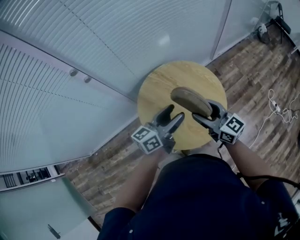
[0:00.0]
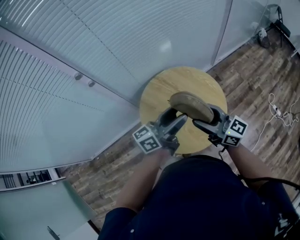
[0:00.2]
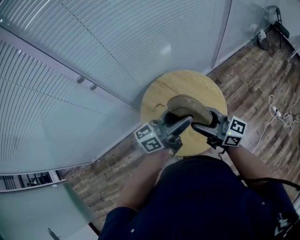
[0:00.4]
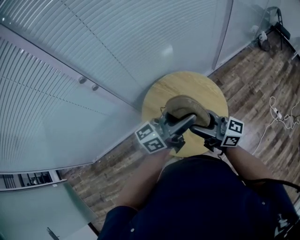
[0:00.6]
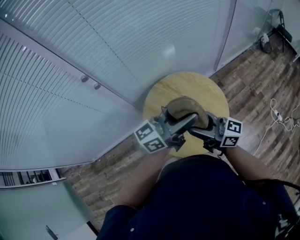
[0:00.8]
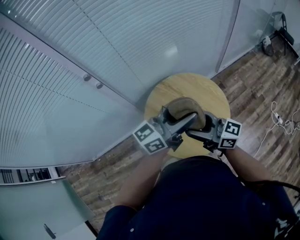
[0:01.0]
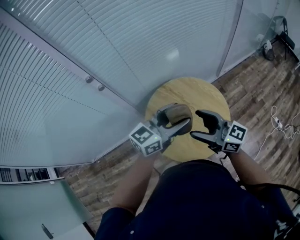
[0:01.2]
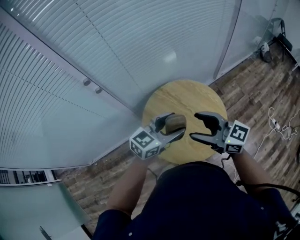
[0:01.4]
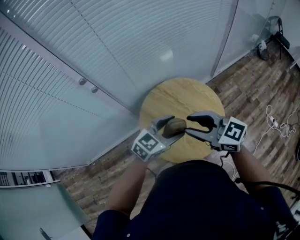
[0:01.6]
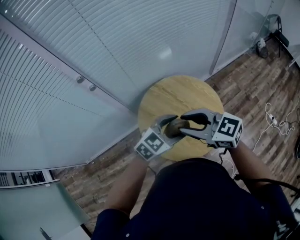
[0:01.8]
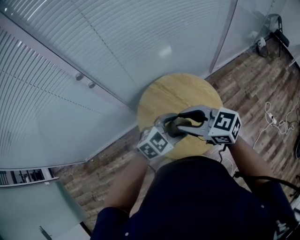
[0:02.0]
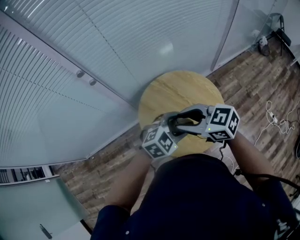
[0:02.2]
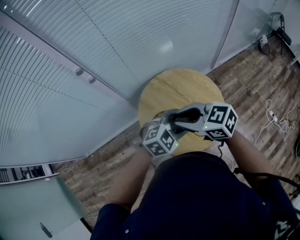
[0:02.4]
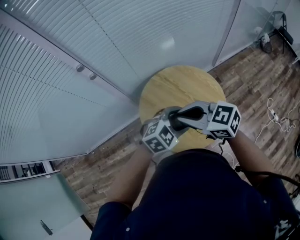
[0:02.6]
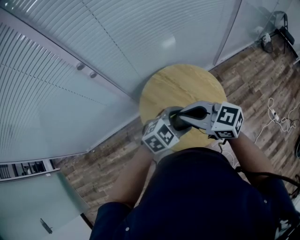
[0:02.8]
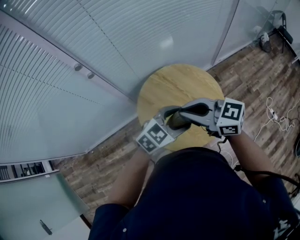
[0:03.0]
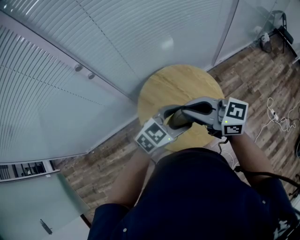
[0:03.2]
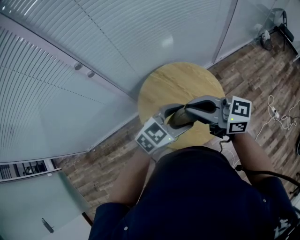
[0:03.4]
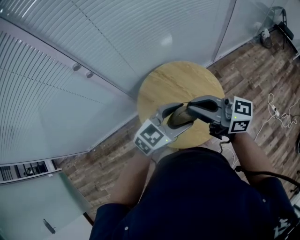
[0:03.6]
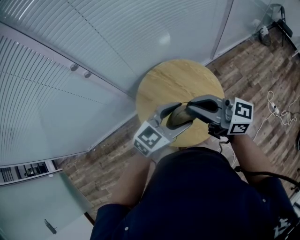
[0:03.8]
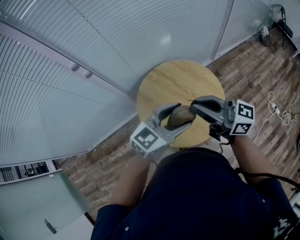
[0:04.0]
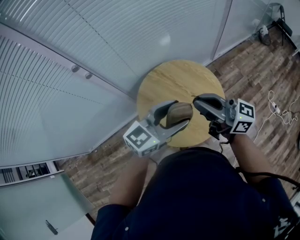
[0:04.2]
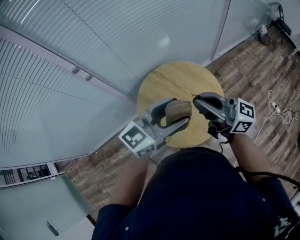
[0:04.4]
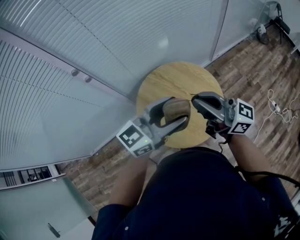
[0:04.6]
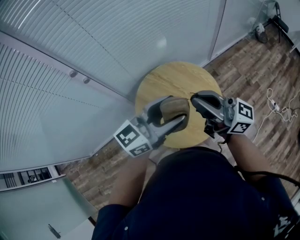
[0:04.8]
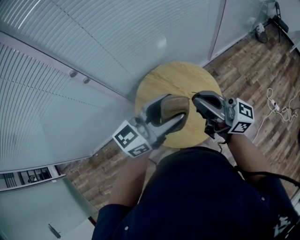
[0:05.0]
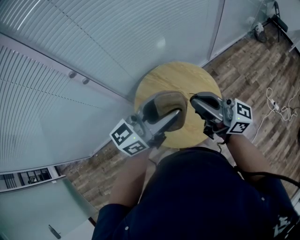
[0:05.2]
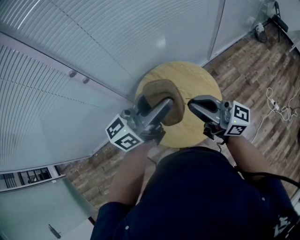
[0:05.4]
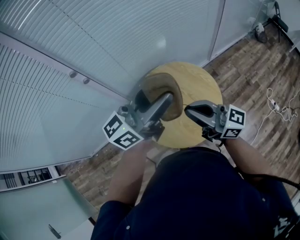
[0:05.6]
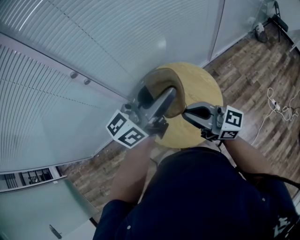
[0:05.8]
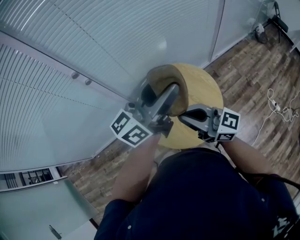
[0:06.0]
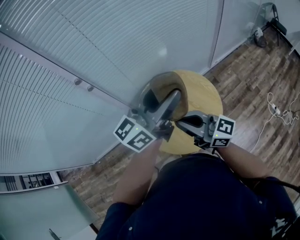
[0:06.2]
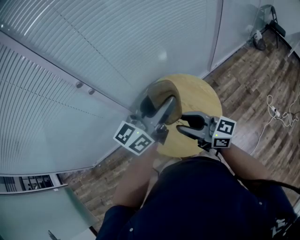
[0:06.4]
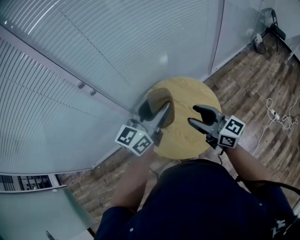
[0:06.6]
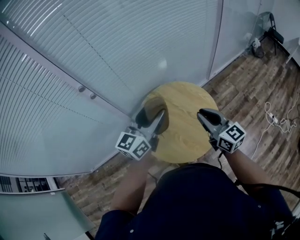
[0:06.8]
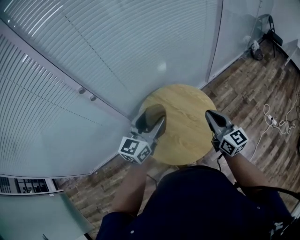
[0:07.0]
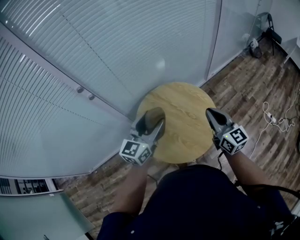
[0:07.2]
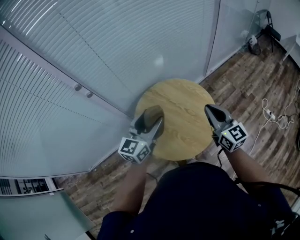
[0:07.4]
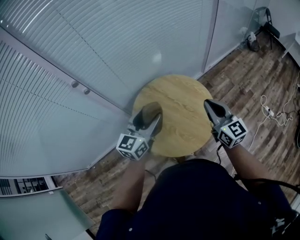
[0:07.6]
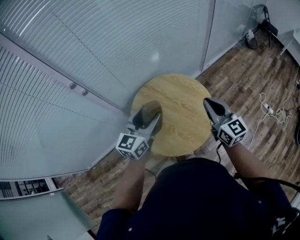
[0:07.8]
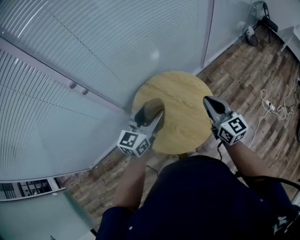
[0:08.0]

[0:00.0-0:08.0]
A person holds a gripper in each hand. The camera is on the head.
0:00.0 to 0:01.6: The right gripper shifts roughly 10 cm upward, and changes its angle by some 20 degrees. Meanwhile the left gripper goes upward and returns, roughly 15 cm each way, and swivels some 50 degrees.
0:01.6 to 0:03.2: The right gripper closes.
0:03.2 to 0:04.8: The left gripper shifts approximately 10 cm upward, and angles its fingers upward, by some 30 degrees. Meanwhile the right gripper shifts by approximately 10 cm, and changes its angle by about 30 degrees.
0:04.8 to 0:06.4: The right gripper heads downward, covering approximately 10 cm. The left gripper is displaced forward and upward by roughly 10 cm.
0:06.4 to 0:08.0: The left gripper shifts about 15 cm downward, and turns by about 20 degrees. Meanwhile the right gripper moves to the right and forward, some 15 cm, and swivels roughly 40 degrees.

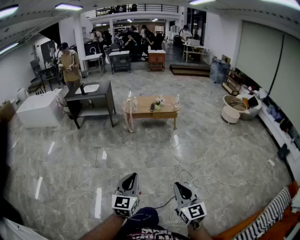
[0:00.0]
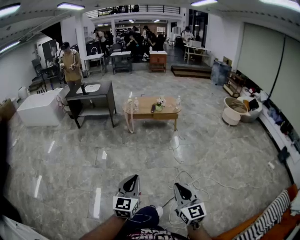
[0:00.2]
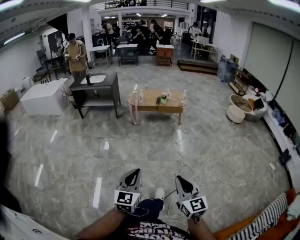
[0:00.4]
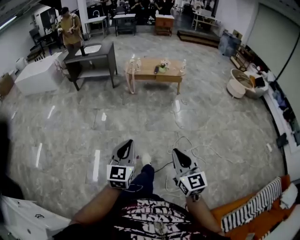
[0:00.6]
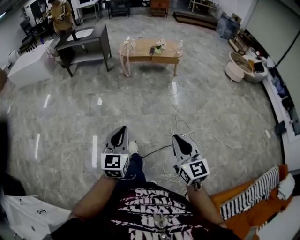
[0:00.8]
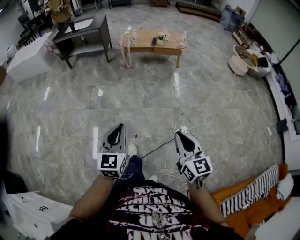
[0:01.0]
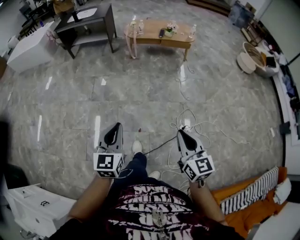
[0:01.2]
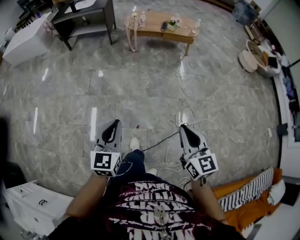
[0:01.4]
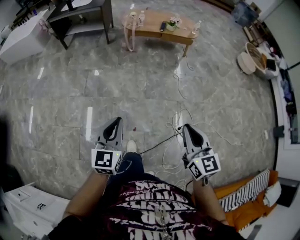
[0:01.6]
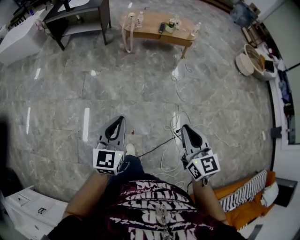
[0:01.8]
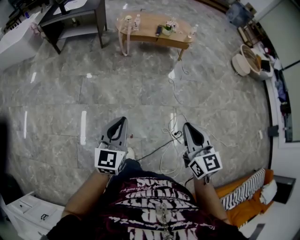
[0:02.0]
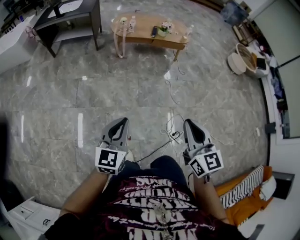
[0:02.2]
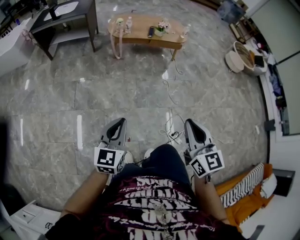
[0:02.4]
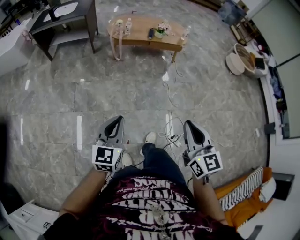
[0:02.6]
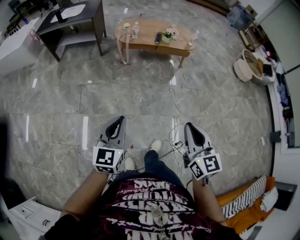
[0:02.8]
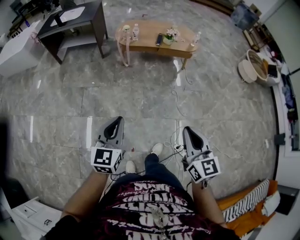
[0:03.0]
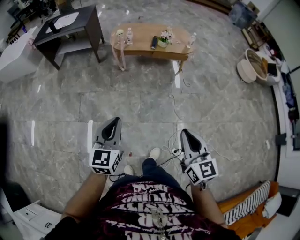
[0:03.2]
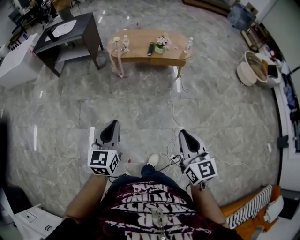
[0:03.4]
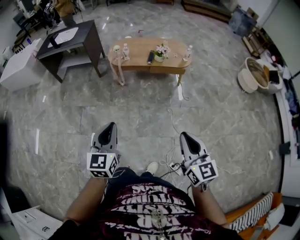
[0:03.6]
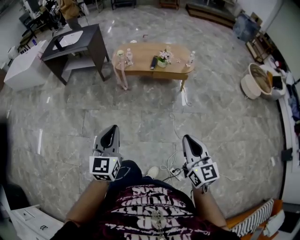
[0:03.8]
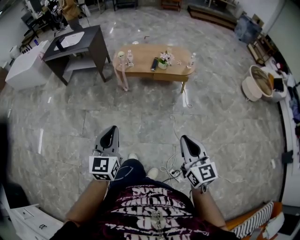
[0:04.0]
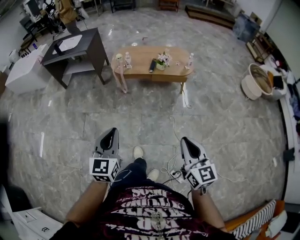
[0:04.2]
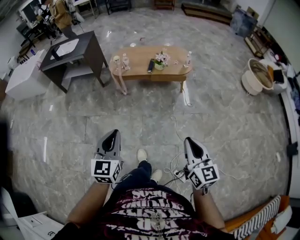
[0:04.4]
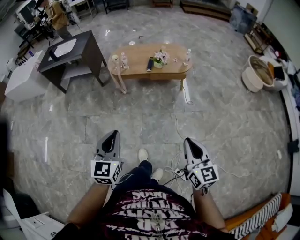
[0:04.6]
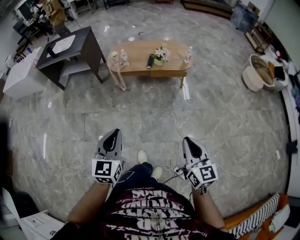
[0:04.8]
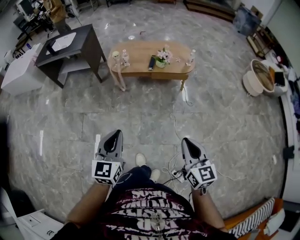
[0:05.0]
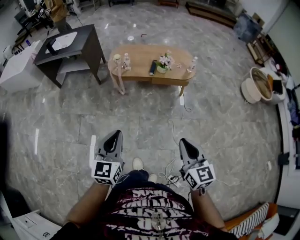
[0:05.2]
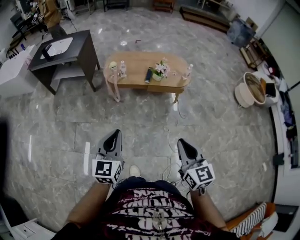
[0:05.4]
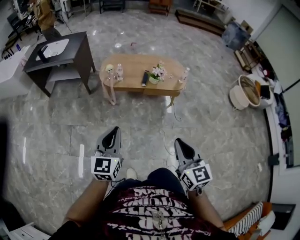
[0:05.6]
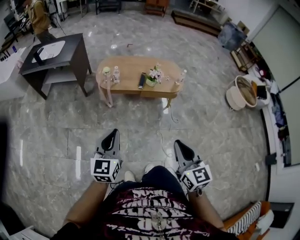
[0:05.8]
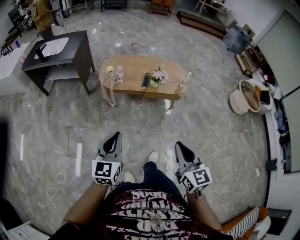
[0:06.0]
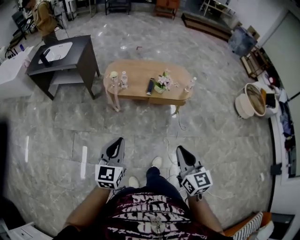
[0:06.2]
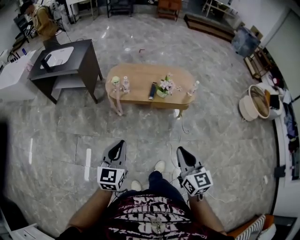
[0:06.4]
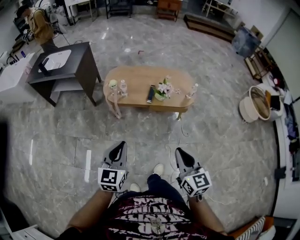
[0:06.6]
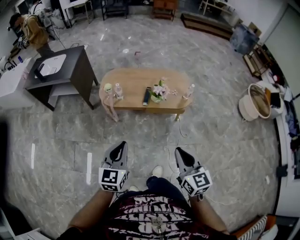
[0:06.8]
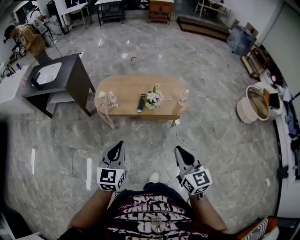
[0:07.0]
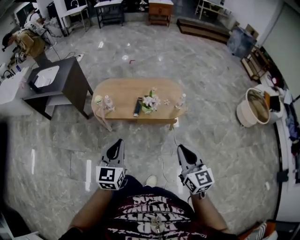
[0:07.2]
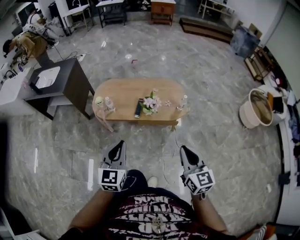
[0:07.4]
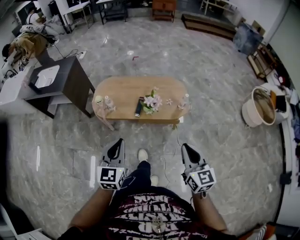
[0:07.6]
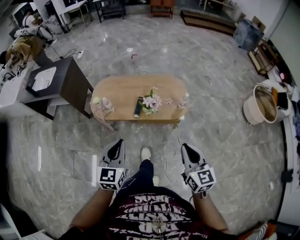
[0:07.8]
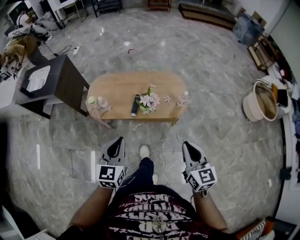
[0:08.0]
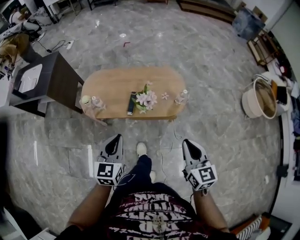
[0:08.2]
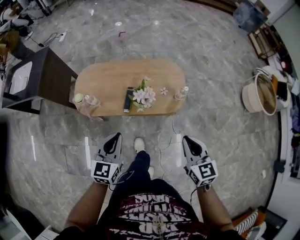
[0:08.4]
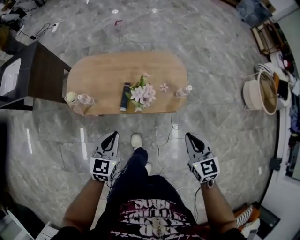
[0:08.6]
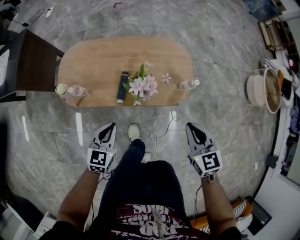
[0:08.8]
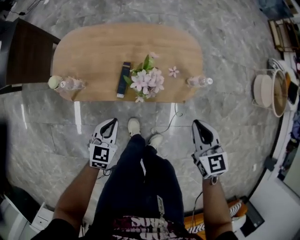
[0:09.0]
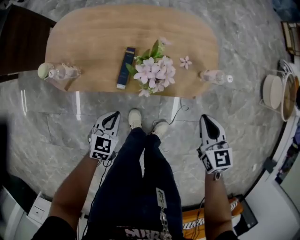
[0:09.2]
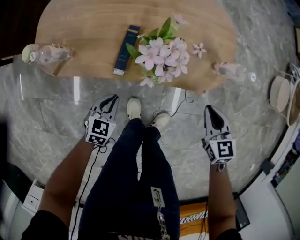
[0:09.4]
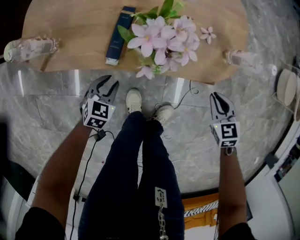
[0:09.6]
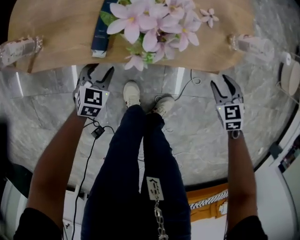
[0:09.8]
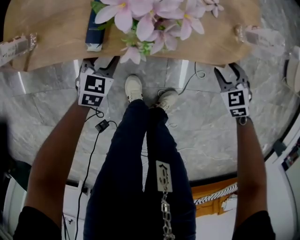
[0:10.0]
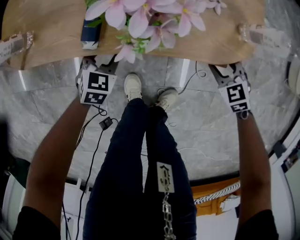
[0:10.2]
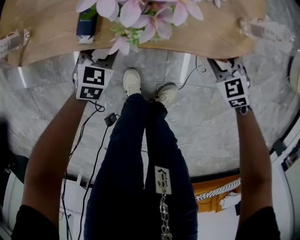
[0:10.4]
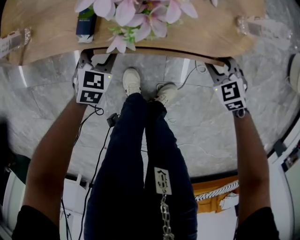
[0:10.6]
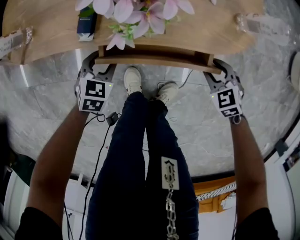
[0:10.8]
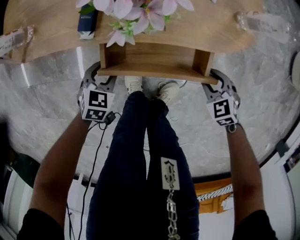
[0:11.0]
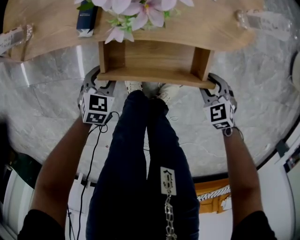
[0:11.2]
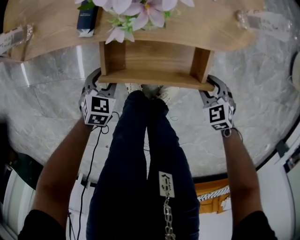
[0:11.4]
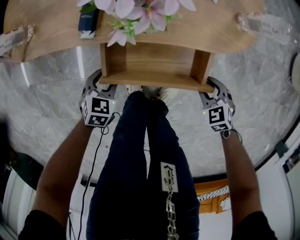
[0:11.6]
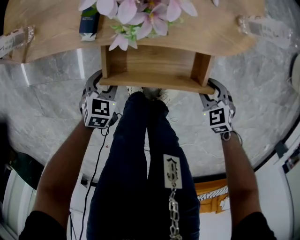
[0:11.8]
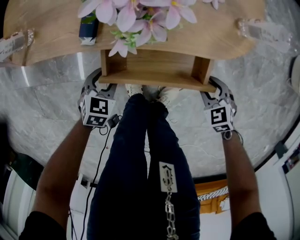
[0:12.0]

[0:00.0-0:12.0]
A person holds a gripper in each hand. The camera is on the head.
0:00.0 to 0:01.6: The left gripper goes approximately 25 cm forward, downward and to the left, while the right gripper goes approximately 25 cm forward.
0:01.6 to 0:03.0: Both grippers travel together forward, some 20 cm.
0:03.0 to 0:04.4: Both grippers move to the right and forward, approximately 20 cm.
0:04.4 to 0:06.0: The right gripper is displaced forward and to the left by roughly 20 cm. The left gripper is displaced forward by some 20 cm.
0:06.0 to 0:07.6: The two grippers go approximately 30 cm forward and to the right.
0:07.6 to 0:09.0: The left gripper travels downward and forward by about 40 cm, and turns by some 30 degrees; the right gripper goes some 40 cm forward and downward, and swivels approximately 20 degrees.
0:09.0 to 0:10.4: The two grippers go about 40 cm downward. The right gripper changes its angle by some 40 degrees, and opens. Meanwhile the left gripper opens up.
0:10.4 to 0:12.0: The grippers both shift backward by about 10 cm.

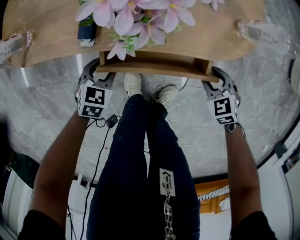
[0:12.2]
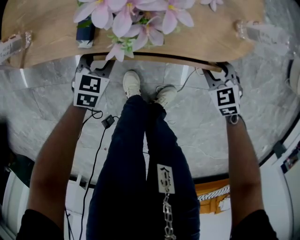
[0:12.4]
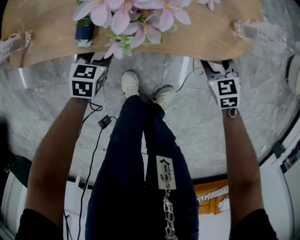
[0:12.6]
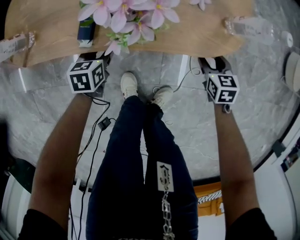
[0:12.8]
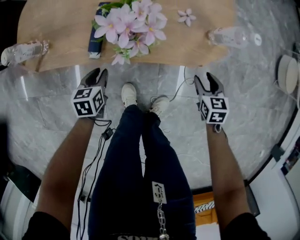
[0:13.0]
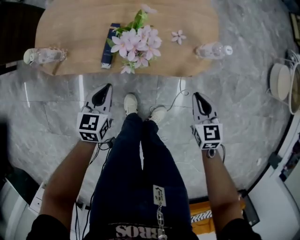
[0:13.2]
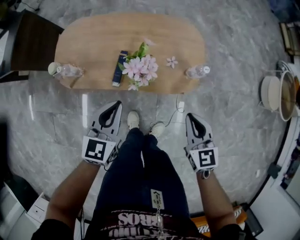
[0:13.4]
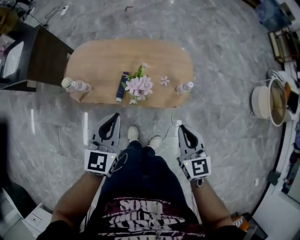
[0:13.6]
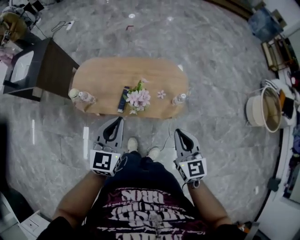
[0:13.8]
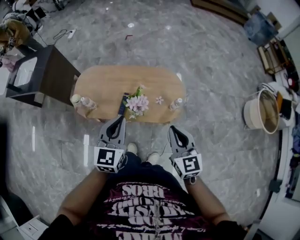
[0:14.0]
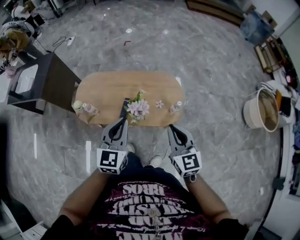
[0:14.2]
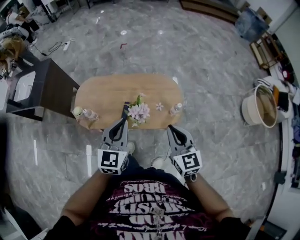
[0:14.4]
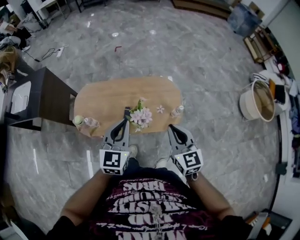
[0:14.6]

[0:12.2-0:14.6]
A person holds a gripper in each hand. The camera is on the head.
0:12.2 to 0:13.4: Both grippers move upward, roughly 40 cm. The left gripper angles its fingers upward, by approximately 30 degrees, and closes up. The right gripper turns by approximately 40 degrees, and closes.
0:13.4 to 0:14.6: The grippers both shift upward by about 25 cm.

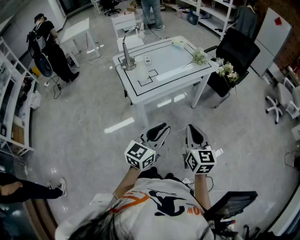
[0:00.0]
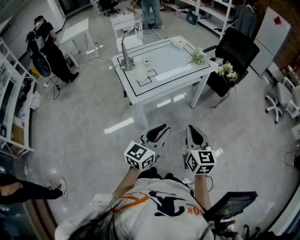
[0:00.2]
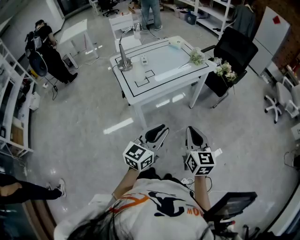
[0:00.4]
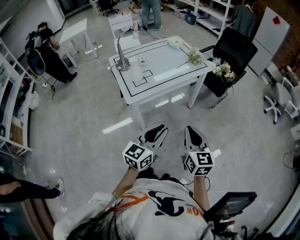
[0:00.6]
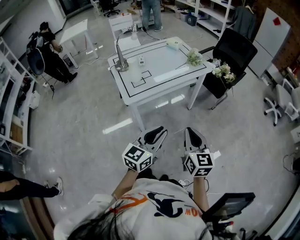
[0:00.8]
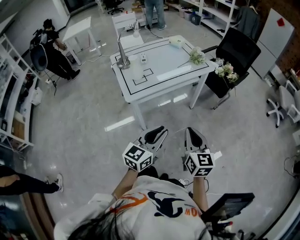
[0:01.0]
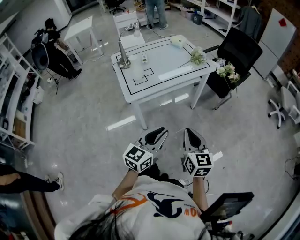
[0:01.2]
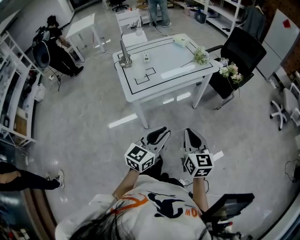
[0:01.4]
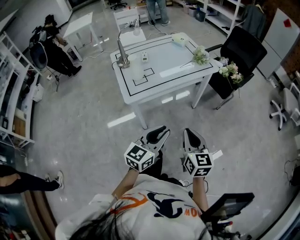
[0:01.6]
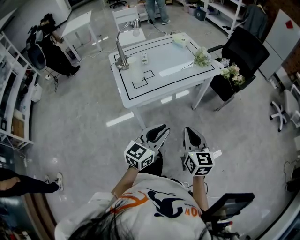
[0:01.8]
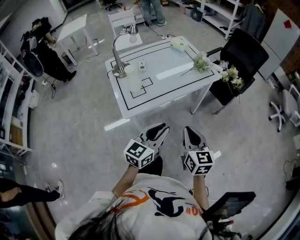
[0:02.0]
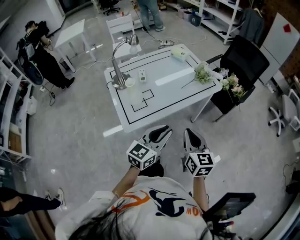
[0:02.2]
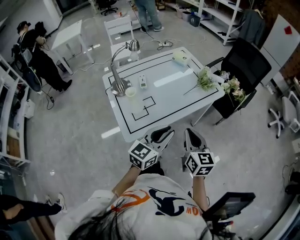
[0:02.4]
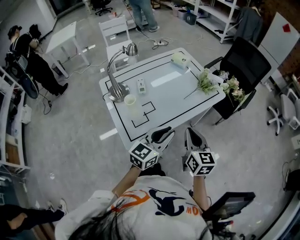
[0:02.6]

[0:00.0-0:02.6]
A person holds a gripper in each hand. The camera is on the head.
0:00.0 to 0:01.2: The left gripper moves some 5 cm. The right gripper shifts by some 5 cm.
0:01.2 to 0:02.6: Both grippers travel together forward, some 30 cm.
